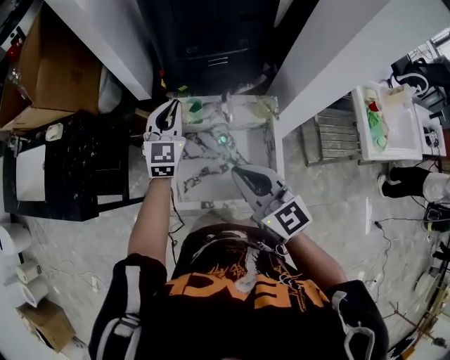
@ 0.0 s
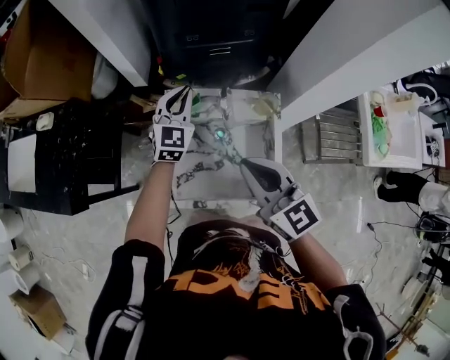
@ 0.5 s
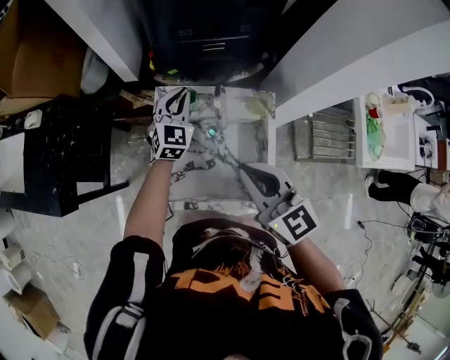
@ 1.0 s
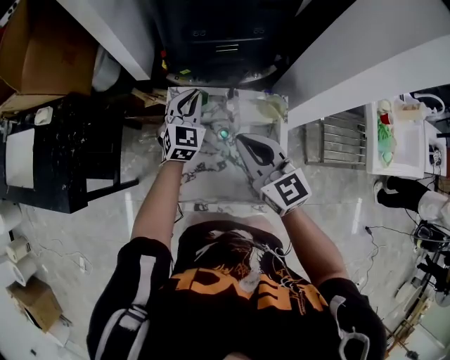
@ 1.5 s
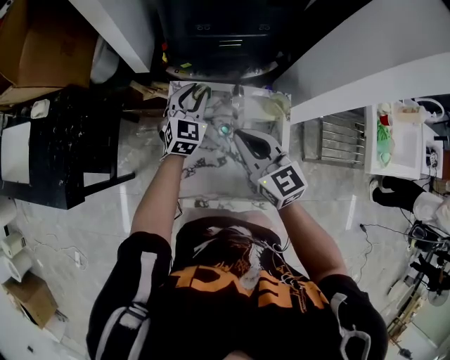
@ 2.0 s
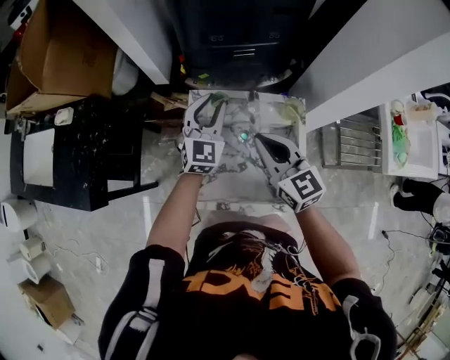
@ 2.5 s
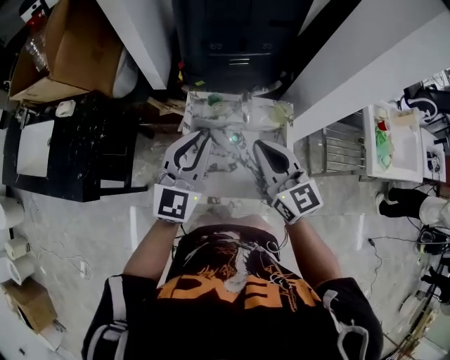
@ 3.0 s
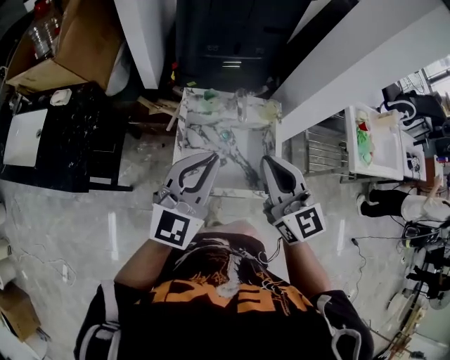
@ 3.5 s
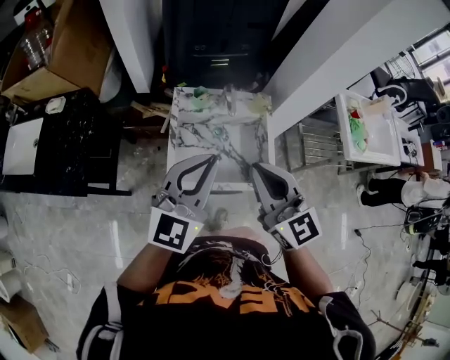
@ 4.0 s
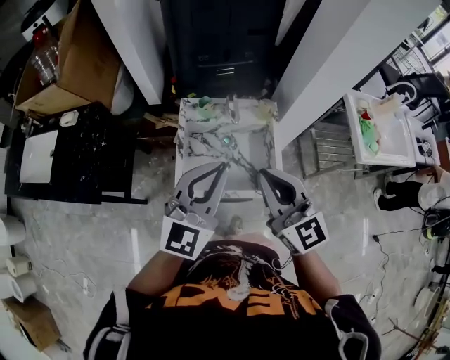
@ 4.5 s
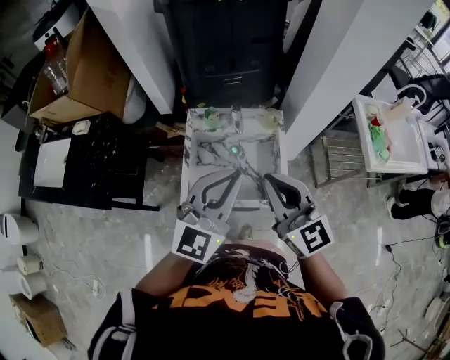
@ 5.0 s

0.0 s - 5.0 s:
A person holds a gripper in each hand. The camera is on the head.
0.0 s - 2.5 s: The left gripper goes approximately 5 cm downward, and opens. The right gripper is displaced forward and downward by some 15 cm.
2.5 s - 5.0 s: The two grippers go some 30 cm backward and upward. The left gripper turns by approximately 20 degrees, and closes.

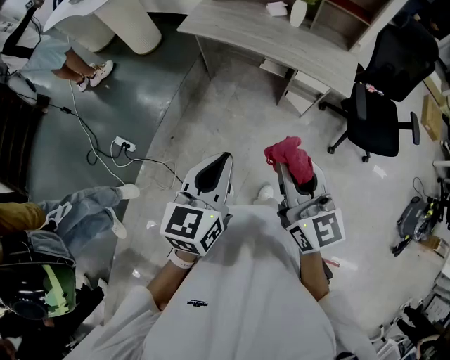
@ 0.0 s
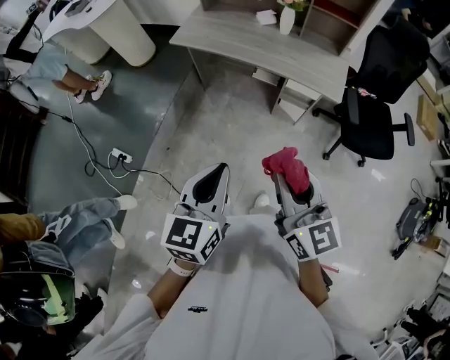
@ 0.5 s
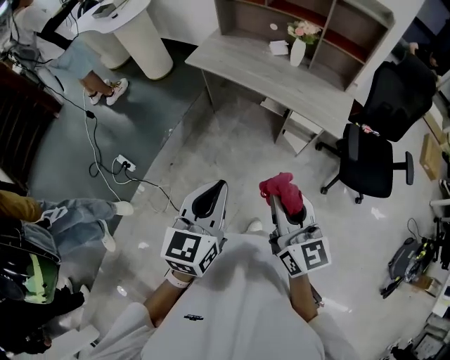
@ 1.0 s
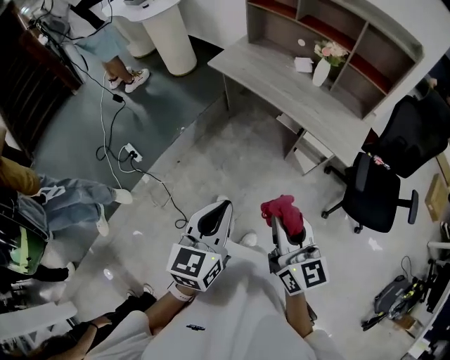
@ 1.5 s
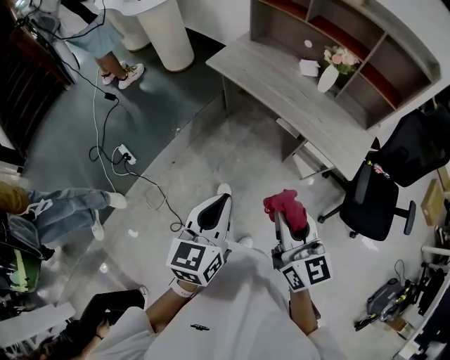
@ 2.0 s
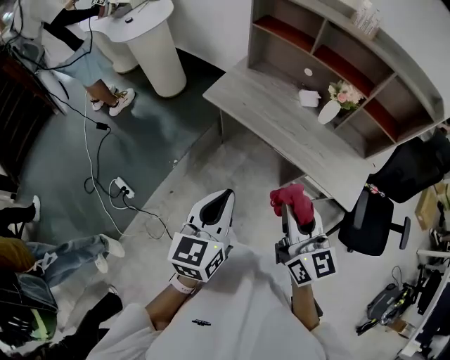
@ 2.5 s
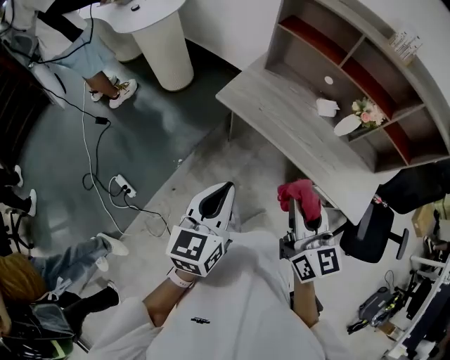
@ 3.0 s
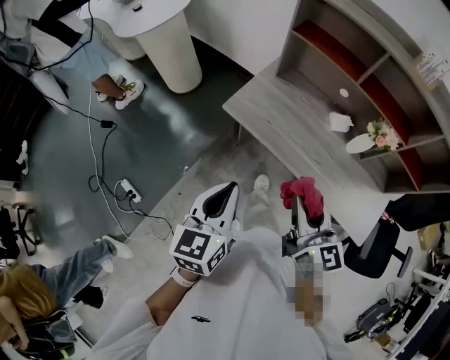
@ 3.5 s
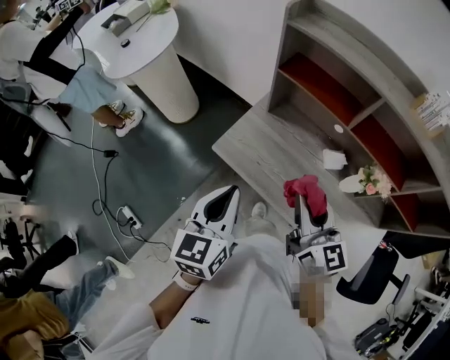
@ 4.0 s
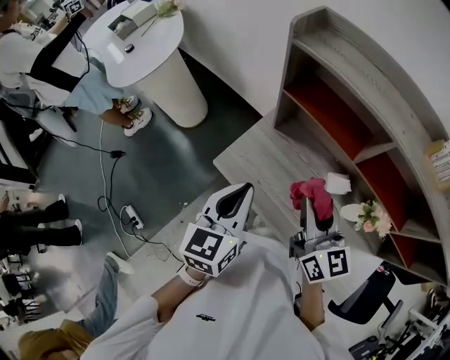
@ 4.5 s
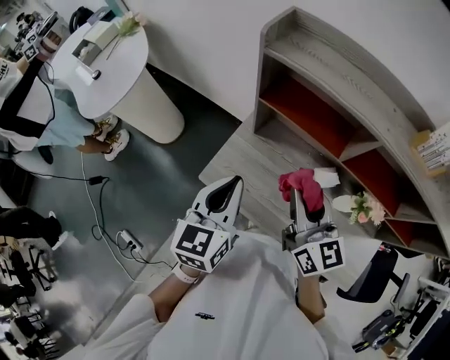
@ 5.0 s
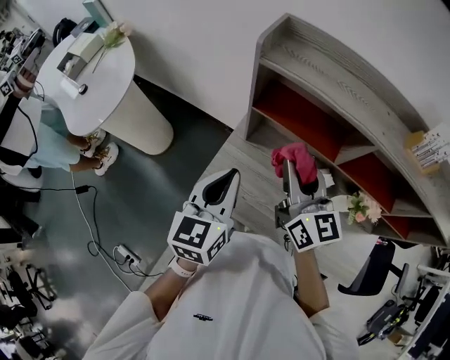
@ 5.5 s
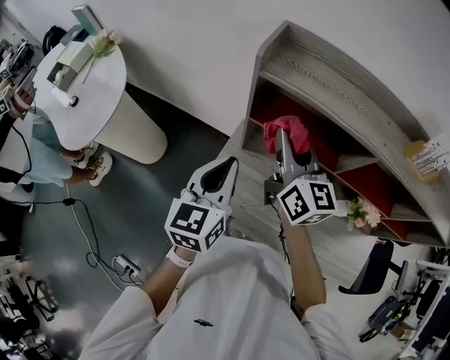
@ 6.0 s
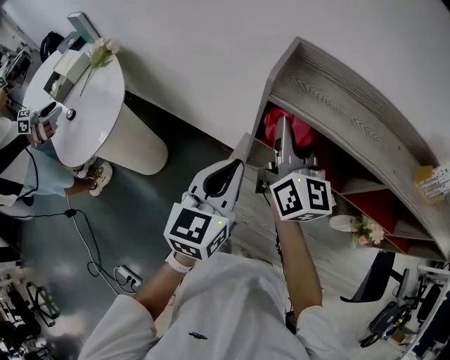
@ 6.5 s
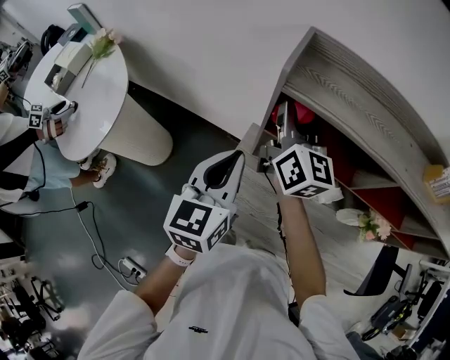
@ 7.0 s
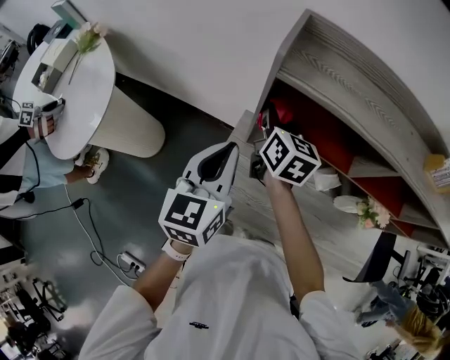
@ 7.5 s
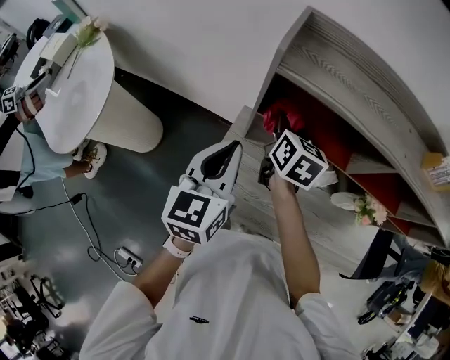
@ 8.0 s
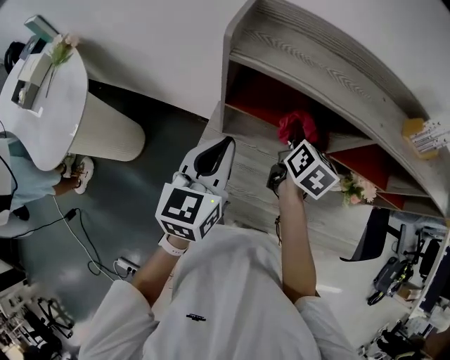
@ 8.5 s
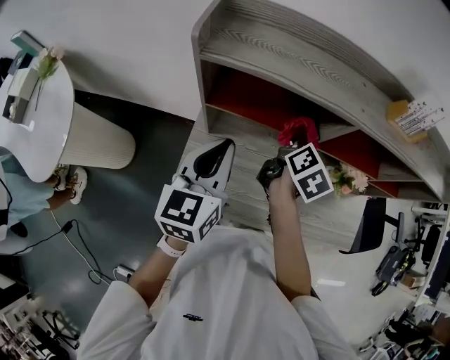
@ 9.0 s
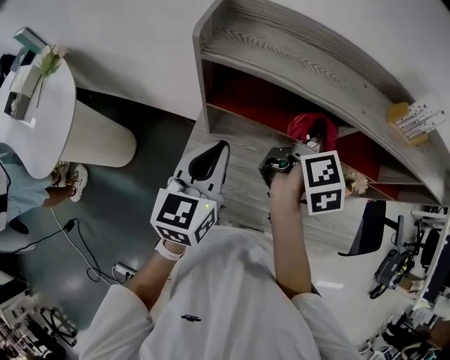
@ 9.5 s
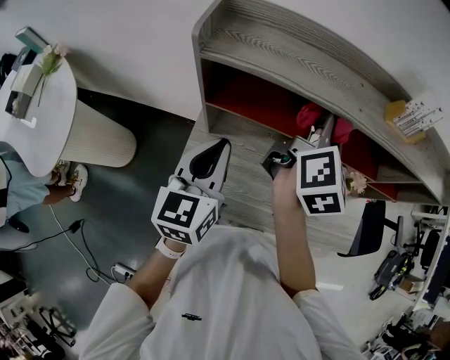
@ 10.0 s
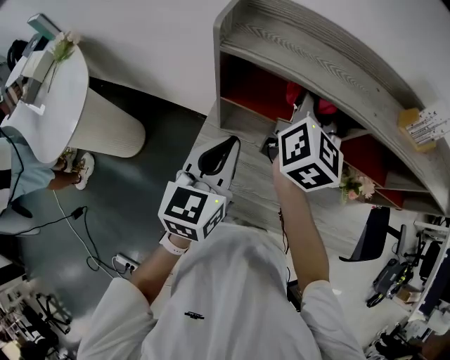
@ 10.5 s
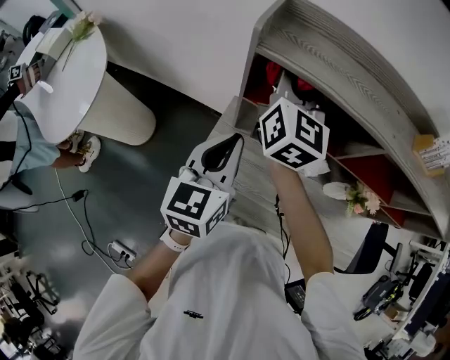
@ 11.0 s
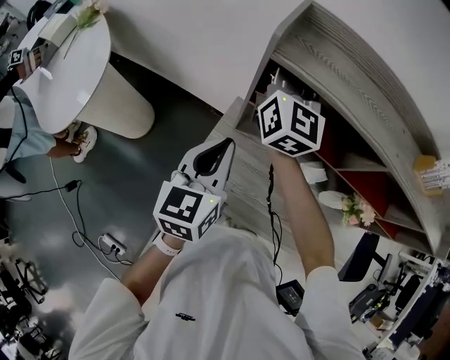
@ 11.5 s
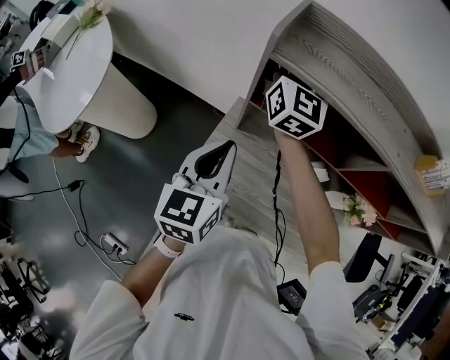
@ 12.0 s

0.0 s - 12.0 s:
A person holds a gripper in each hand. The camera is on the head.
0.0 s - 2.0 s: The left gripper is displaced forward by roughly 10 cm. The right gripper is displaced forward and to the right by some 15 cm.
2.0 s - 4.0 s: Both grippers are carried forward, about 60 cm.
4.0 s - 6.0 s: Both grippers travel together forward, roughly 30 cm.
6.0 s - 8.0 s: The right gripper heads downward and forward, covering about 15 cm, and tips its fingers downward by some 30 degrees. The left gripper changes place by roughly 5 cm.
8.0 s - 10.0 s: The right gripper goes about 25 cm to the right and upward, and swivels roughly 50 degrees. The left gripper heads to the right, covering roughly 10 cm.
10.0 s - 12.0 s: The right gripper shifts approximately 30 cm to the left and forward, and rotates approximately 50 degrees. The left gripper shifts about 5 cm to the left.

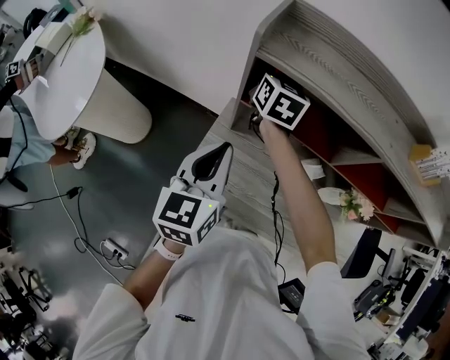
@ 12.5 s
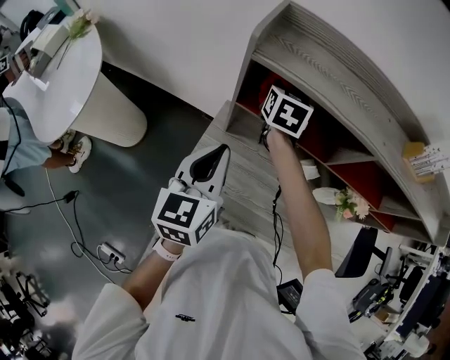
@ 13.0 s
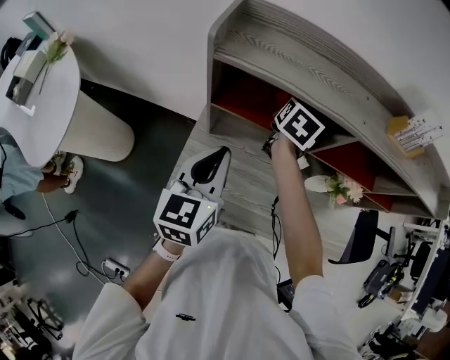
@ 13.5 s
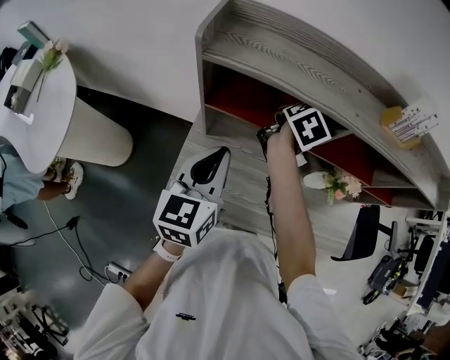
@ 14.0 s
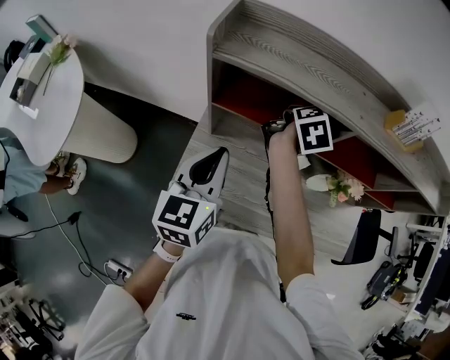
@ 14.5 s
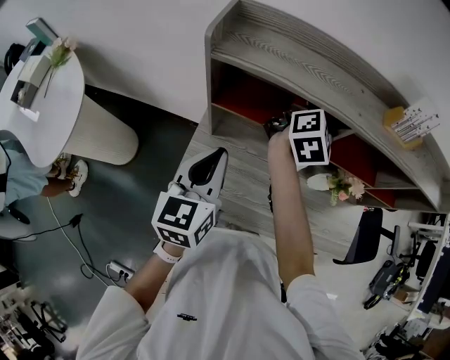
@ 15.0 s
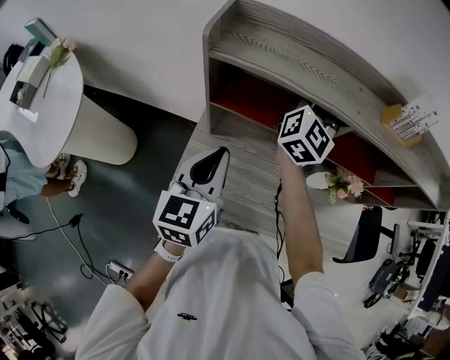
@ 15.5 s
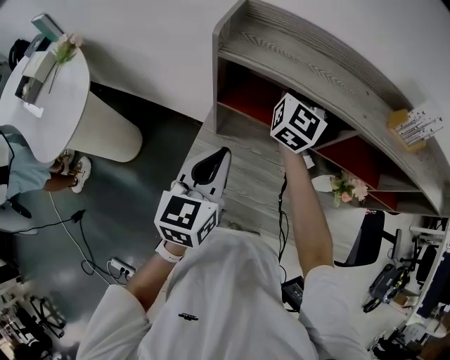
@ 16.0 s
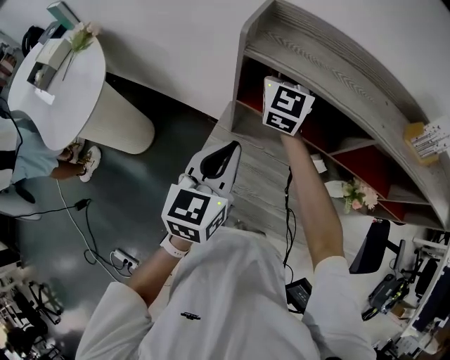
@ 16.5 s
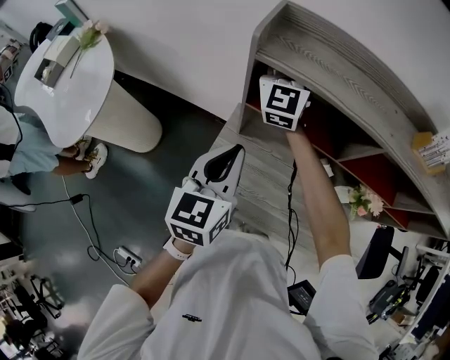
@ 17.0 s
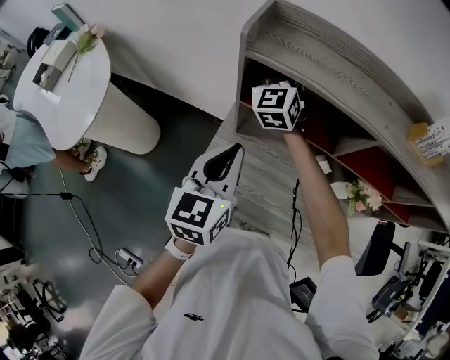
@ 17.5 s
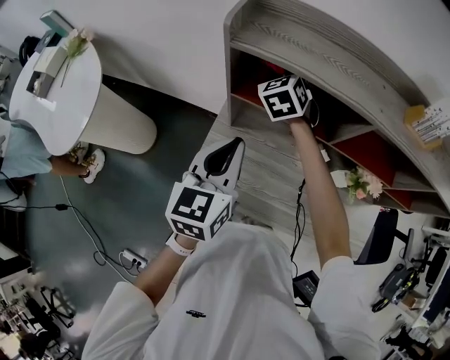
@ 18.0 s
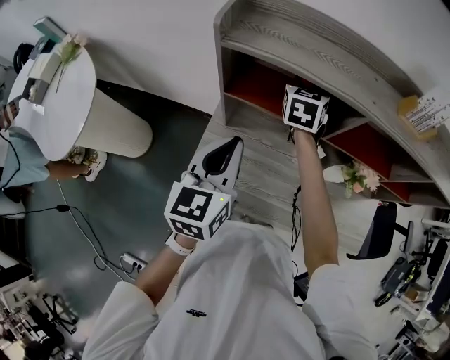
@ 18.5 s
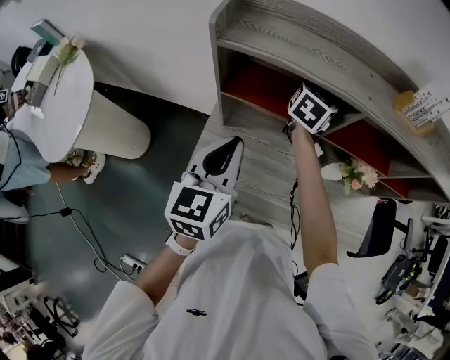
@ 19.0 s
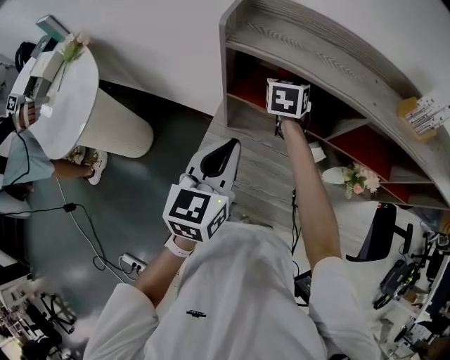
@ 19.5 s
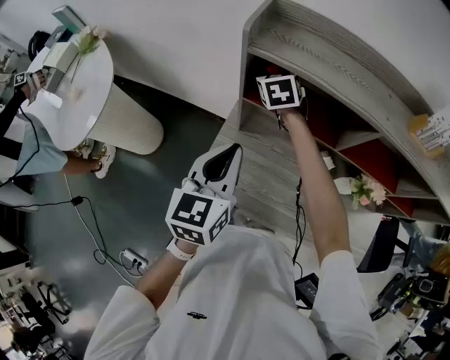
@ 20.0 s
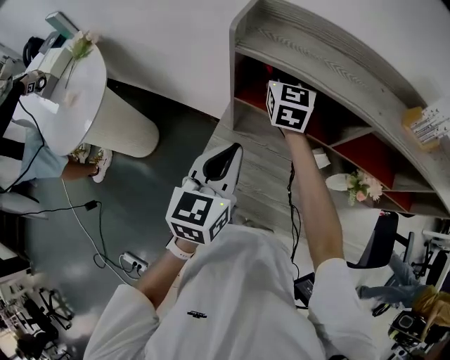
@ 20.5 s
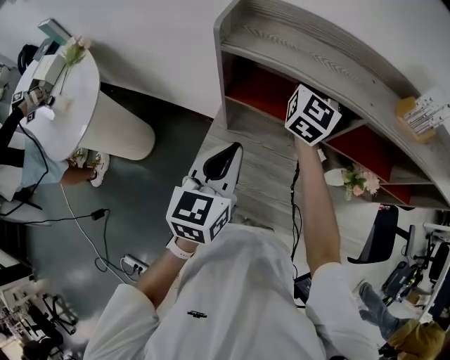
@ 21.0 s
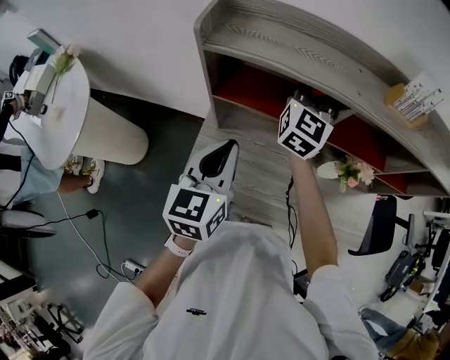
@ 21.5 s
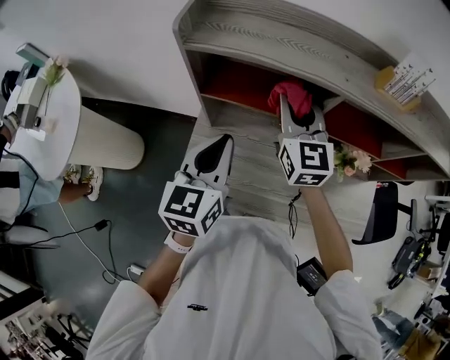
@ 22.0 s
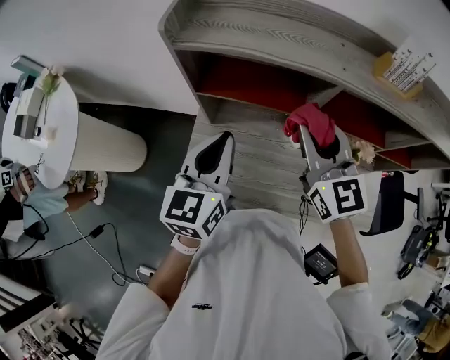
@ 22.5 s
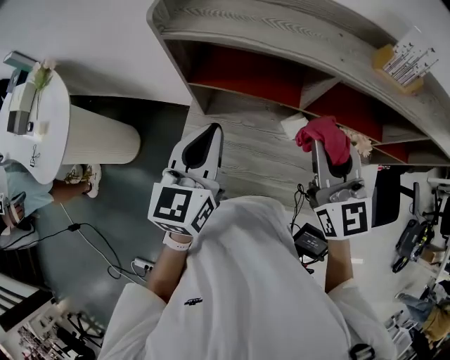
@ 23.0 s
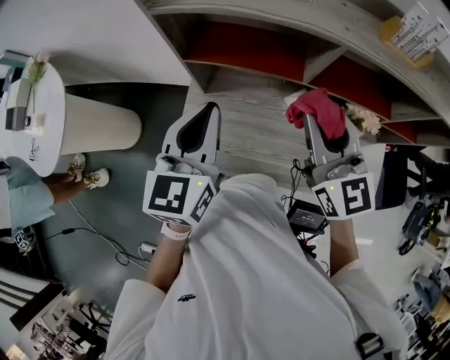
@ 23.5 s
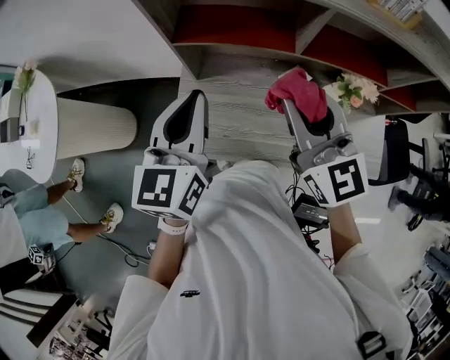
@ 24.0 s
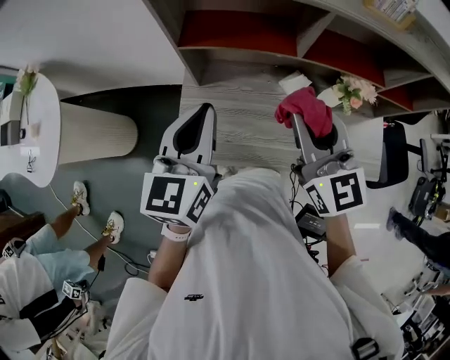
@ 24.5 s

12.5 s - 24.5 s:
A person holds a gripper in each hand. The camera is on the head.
12.5 s - 14.5 s: The right gripper changes place by roughly 25 cm, and changes its angle by roughly 60 degrees.
14.5 s - 16.5 s: The right gripper heads to the left and upward, covering approximately 25 cm, and tips its fingers upward by some 40 degrees.
16.5 s - 18.5 s: The right gripper heads downward and to the right, covering some 20 cm, and angles its fingers downward, by roughly 40 degrees.
18.5 s - 20.5 s: The right gripper swings left and right, some 25 cm each way, with 2 reversals, and changes its angle by approximately 30 degrees.
20.5 s - 22.5 s: The left gripper travels to the right by some 5 cm. Meanwhile the right gripper is displaced backward and to the right by some 25 cm.
22.5 s - 24.5 s: The right gripper moves backward, roughly 10 cm. The left gripper shifts some 5 cm backward.
